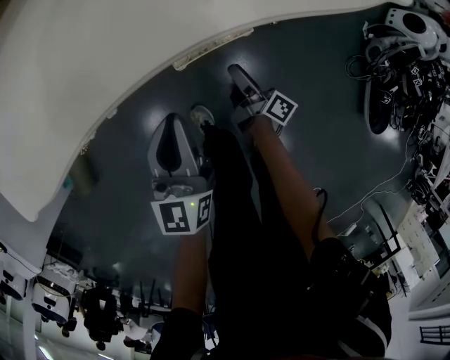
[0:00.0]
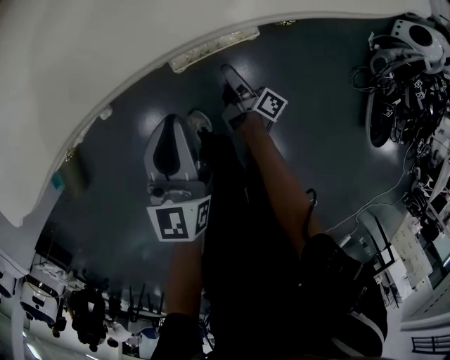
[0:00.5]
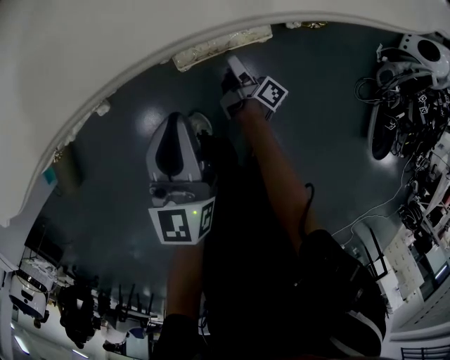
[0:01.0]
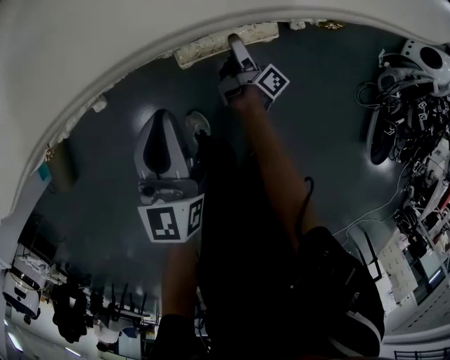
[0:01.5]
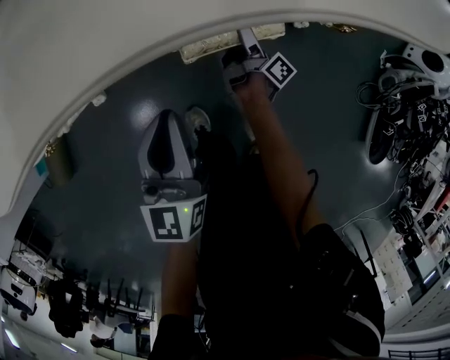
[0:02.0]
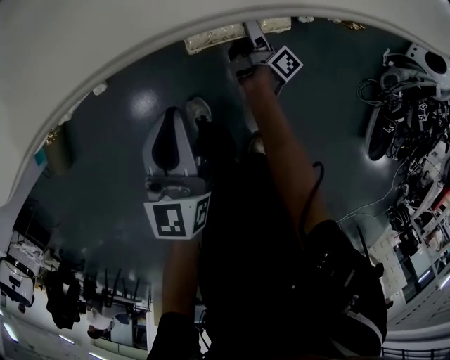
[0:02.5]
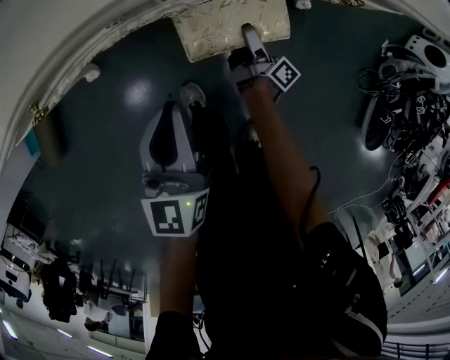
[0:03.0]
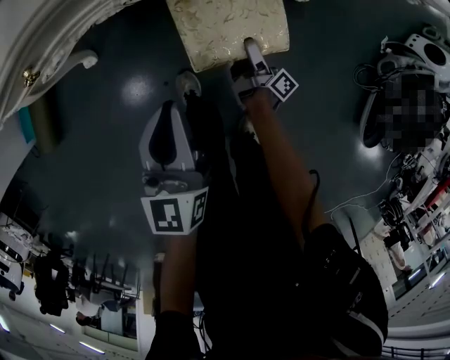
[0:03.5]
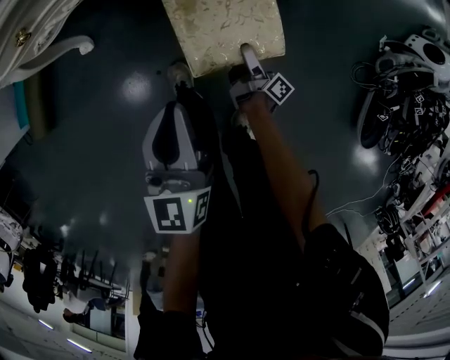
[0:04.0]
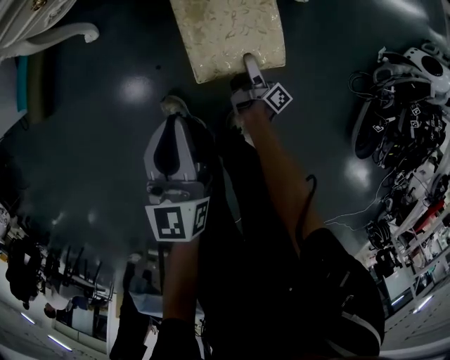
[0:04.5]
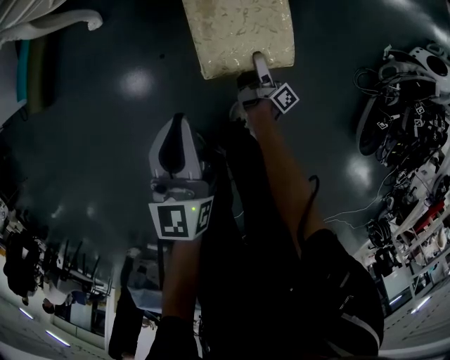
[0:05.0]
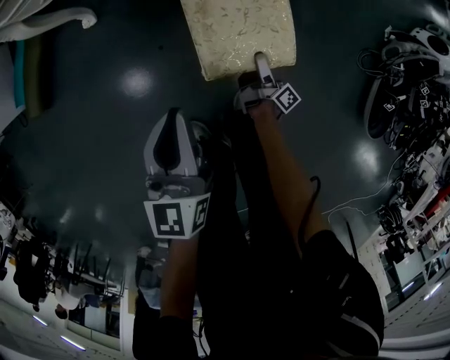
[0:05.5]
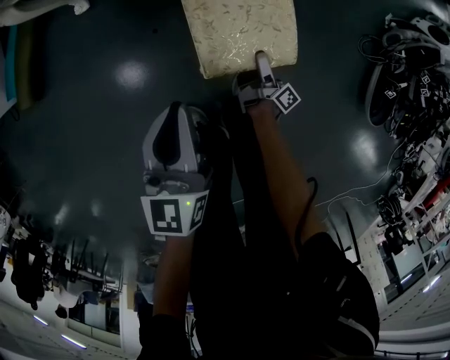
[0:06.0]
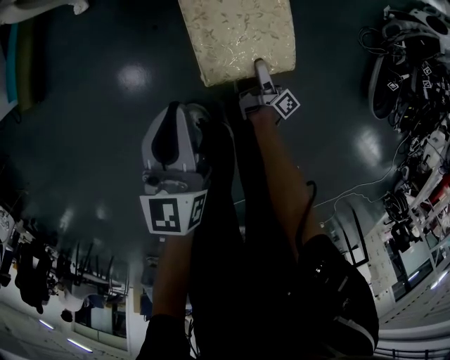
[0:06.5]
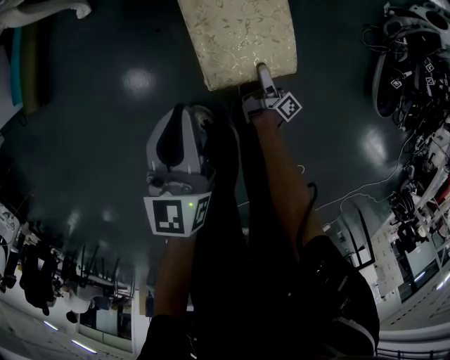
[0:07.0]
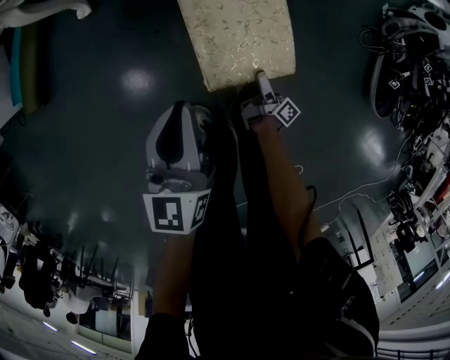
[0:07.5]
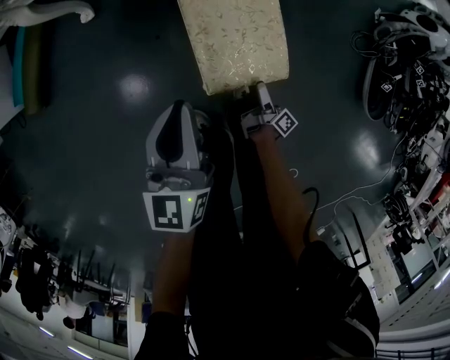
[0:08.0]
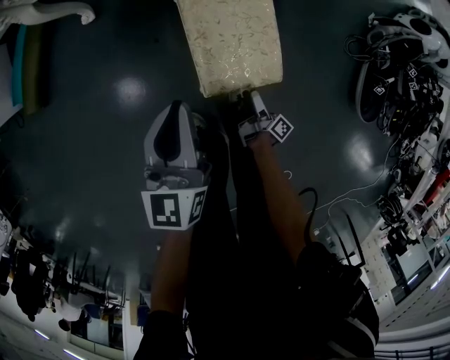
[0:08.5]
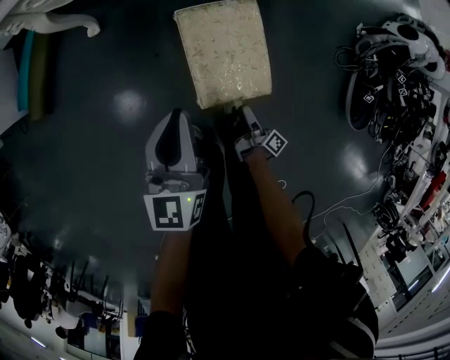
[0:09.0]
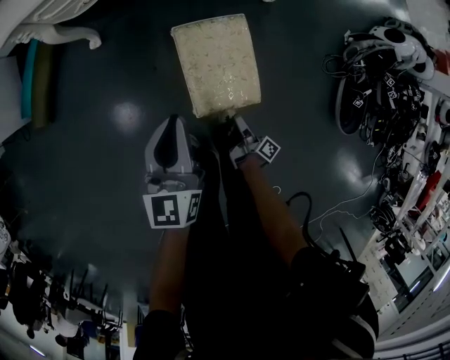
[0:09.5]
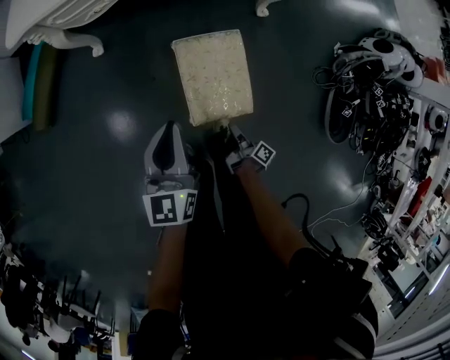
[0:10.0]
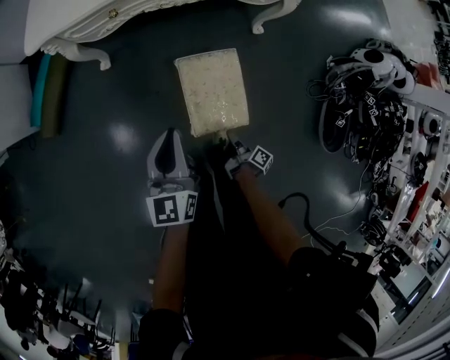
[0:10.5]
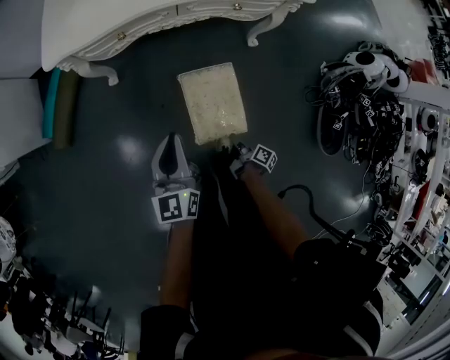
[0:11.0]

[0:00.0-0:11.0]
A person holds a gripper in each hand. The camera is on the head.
0:00.0 to 0:02.0: The right gripper shifts some 15 cm downward and forward, and opens its fingers; the left gripper shifts roughly 10 cm downward.
0:02.0 to 0:03.5: The left gripper is displaced backward by about 10 cm, while the right gripper goes some 15 cm backward.
0:03.5 to 0:05.5: The two grippers go approximately 20 cm backward.
0:05.5 to 0:07.5: The left gripper goes roughly 10 cm backward. Meanwhile the right gripper moves backward, roughly 15 cm.
0:07.5 to 0:09.0: The right gripper is displaced upward and backward by approximately 10 cm, and closes its fingers. Meanwhile the left gripper goes about 10 cm upward.
0:09.0 to 0:11.0: The right gripper moves upward and forward, some 15 cm, and closes. The left gripper heads upward, covering about 15 cm.

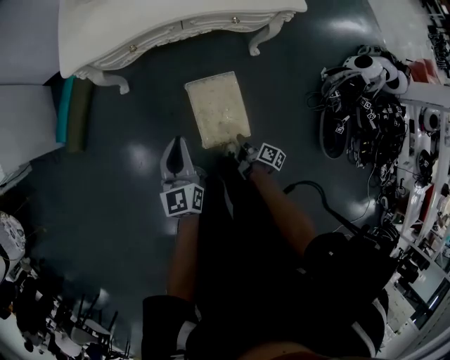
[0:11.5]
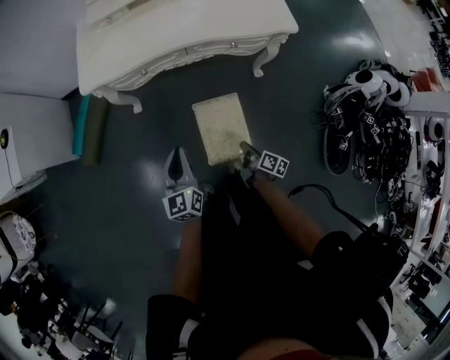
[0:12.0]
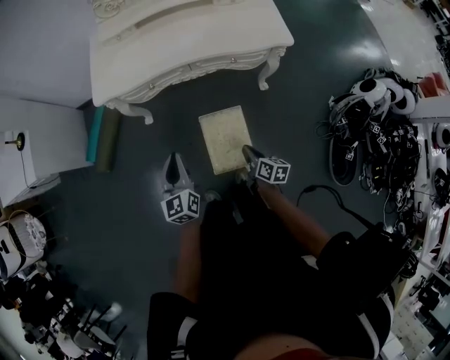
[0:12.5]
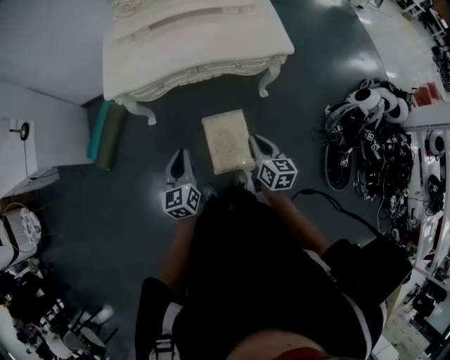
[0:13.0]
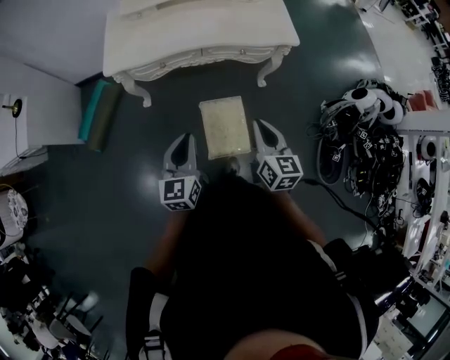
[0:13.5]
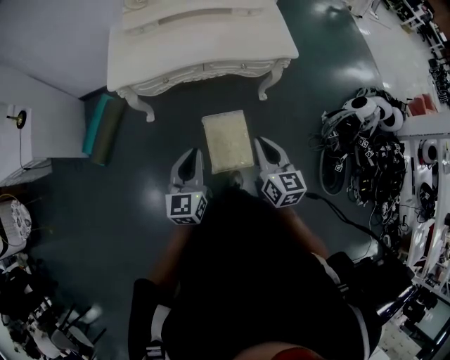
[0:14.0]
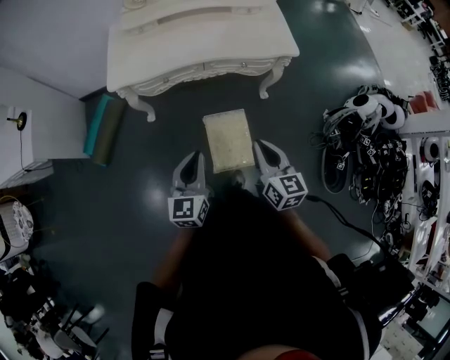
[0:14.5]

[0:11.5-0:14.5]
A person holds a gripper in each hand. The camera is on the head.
0:11.5 to 0:13.0: The left gripper shifts approximately 10 cm upward. Meanwhile the right gripper is displaced upward by about 30 cm, and twists roughly 50 degrees counterclockwise, seen from behind.
0:13.0 to 0:14.5: The left gripper moves some 5 cm. The right gripper heads upward, covering some 10 cm.

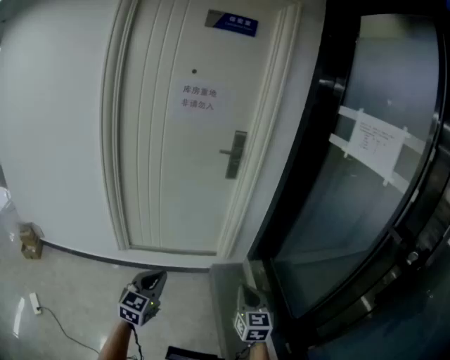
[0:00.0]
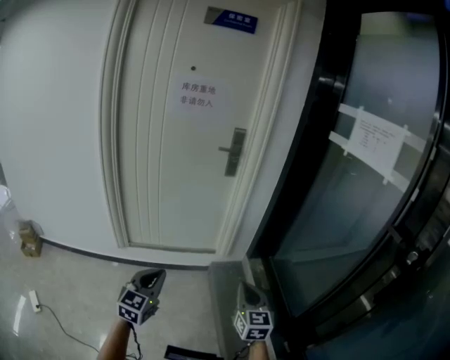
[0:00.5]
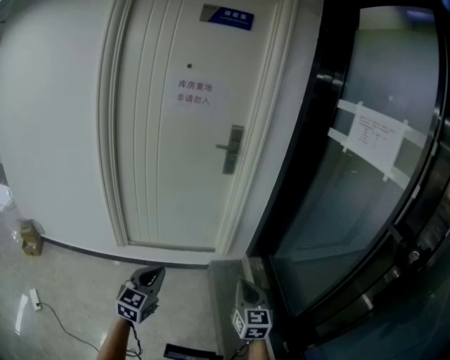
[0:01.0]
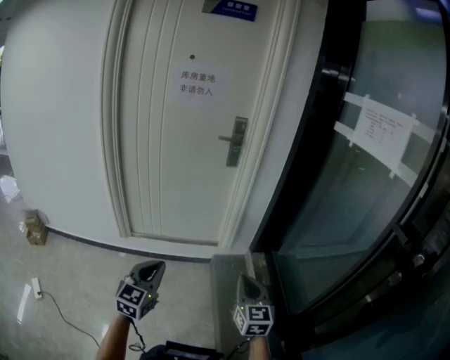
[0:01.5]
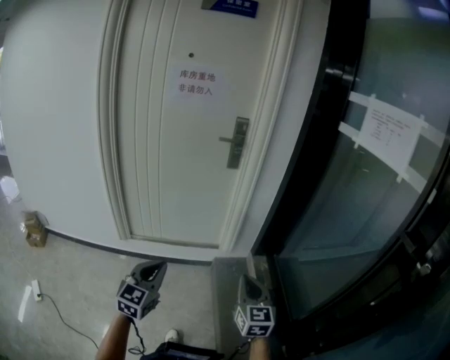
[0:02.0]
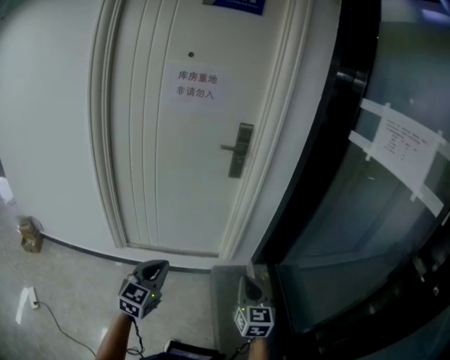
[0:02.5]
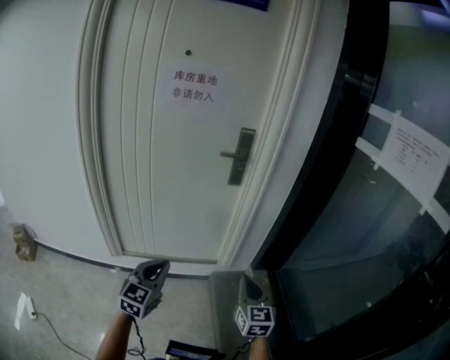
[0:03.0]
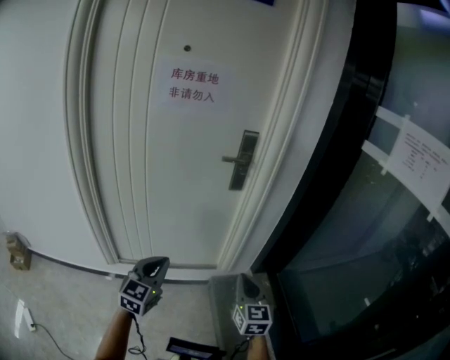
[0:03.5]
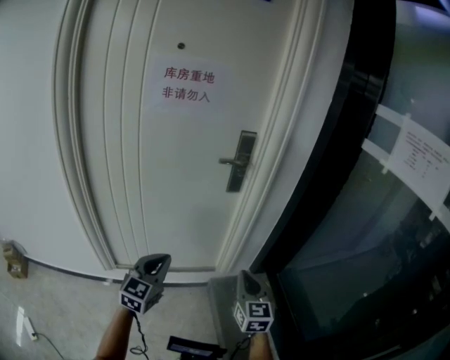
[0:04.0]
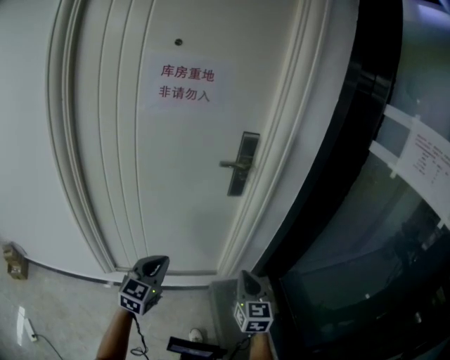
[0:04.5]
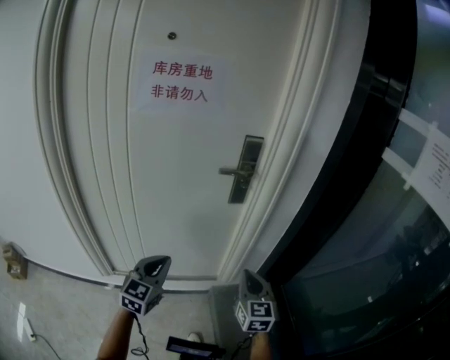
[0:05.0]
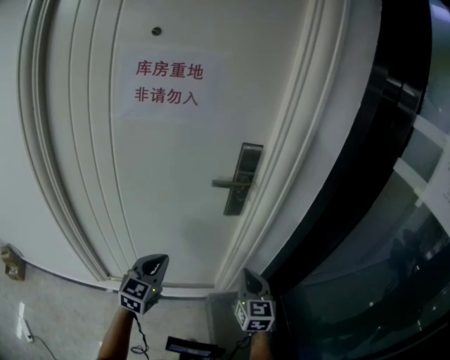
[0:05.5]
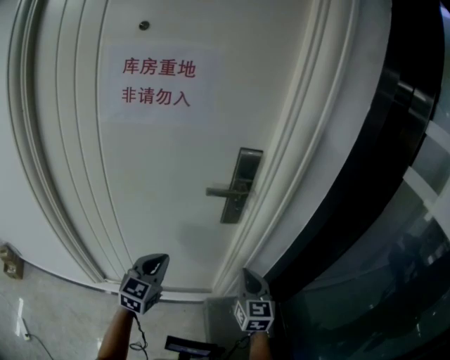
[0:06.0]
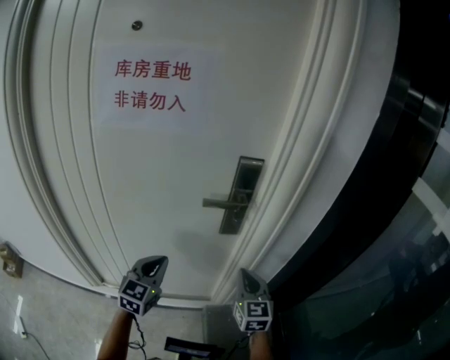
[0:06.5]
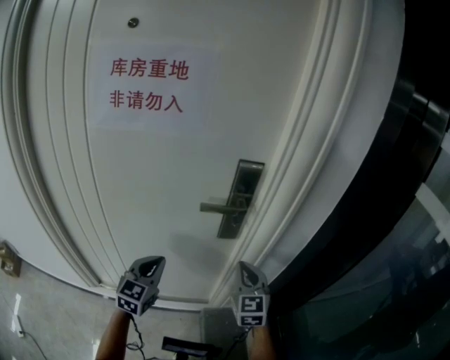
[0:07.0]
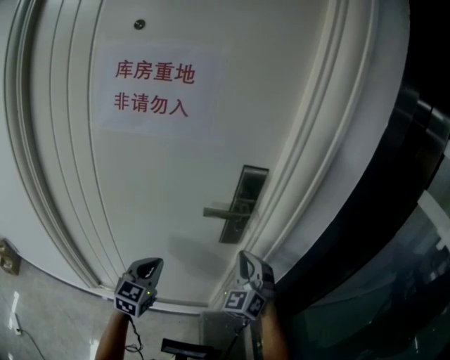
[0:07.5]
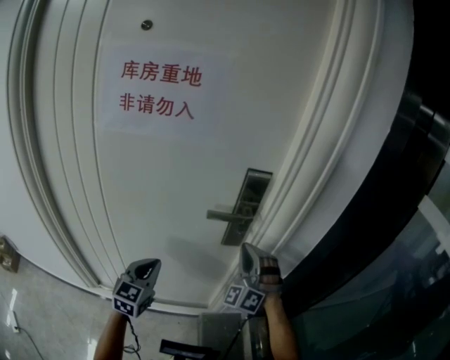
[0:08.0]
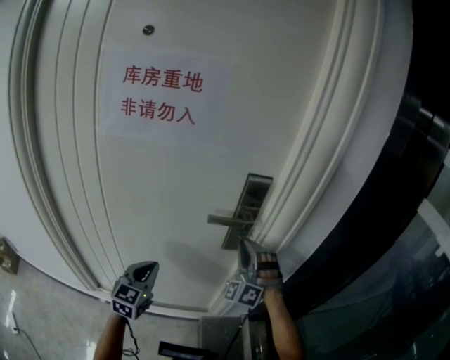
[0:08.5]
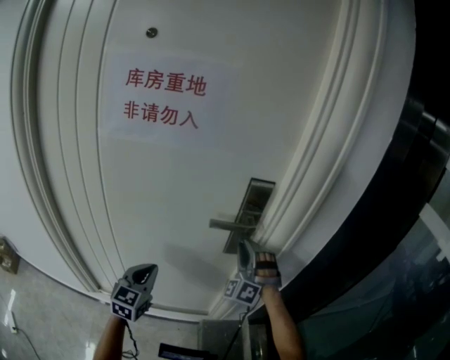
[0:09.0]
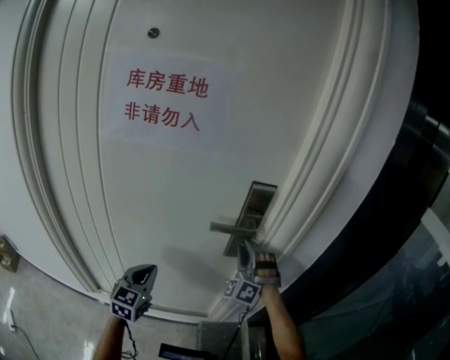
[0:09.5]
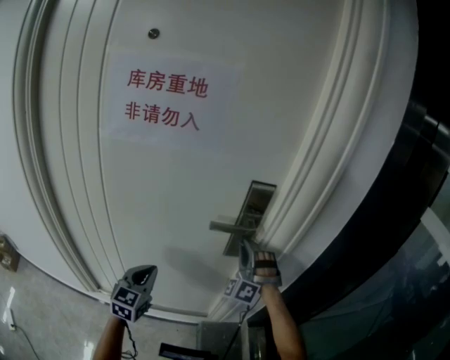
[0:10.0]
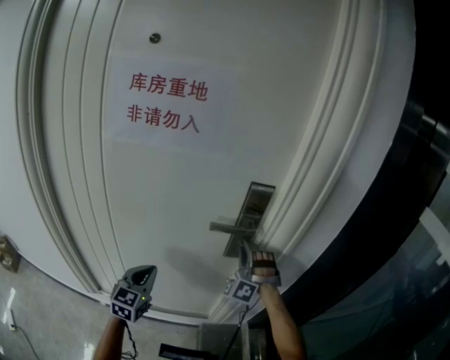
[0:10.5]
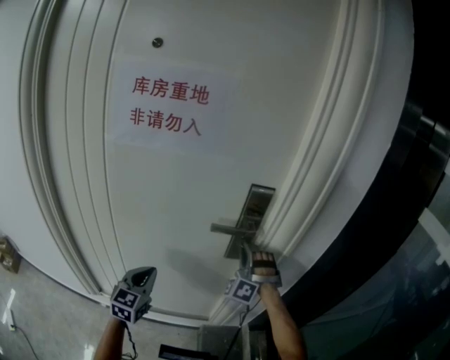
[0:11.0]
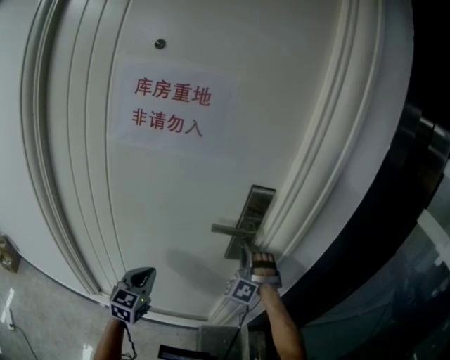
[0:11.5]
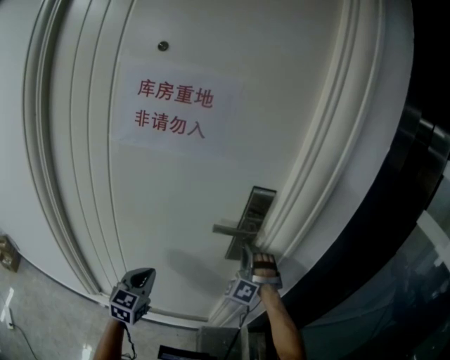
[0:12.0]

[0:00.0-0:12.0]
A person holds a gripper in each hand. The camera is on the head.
0:00.0 to 0:02.0: The left gripper travels to the right by about 5 cm. Meanwhile the right gripper goes roughly 10 cm forward and to the right.
0:02.0 to 0:04.0: The two grippers go some 25 cm forward.
0:04.0 to 0:06.0: The two grippers go some 25 cm forward.
0:06.0 to 0:08.0: The left gripper is displaced forward by about 5 cm; the right gripper shifts approximately 15 cm forward and upward, and rotates around the line of its fingers by about 70 degrees, counterclockwise from behind.
0:08.0 to 0:10.0: The right gripper travels forward by roughly 5 cm.
0:10.0 to 0:12.0: The grippers stay close to where they were, moving slightly.

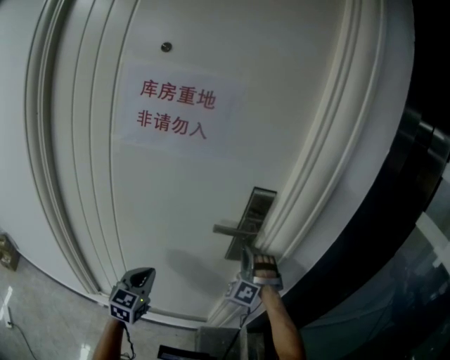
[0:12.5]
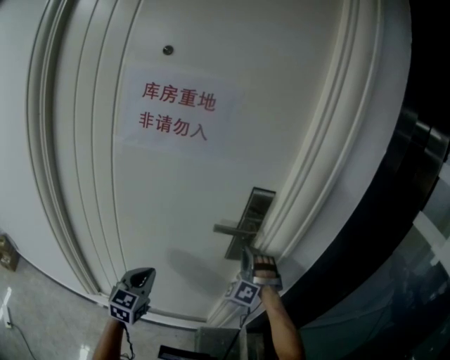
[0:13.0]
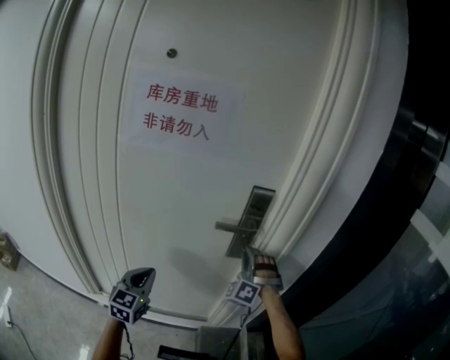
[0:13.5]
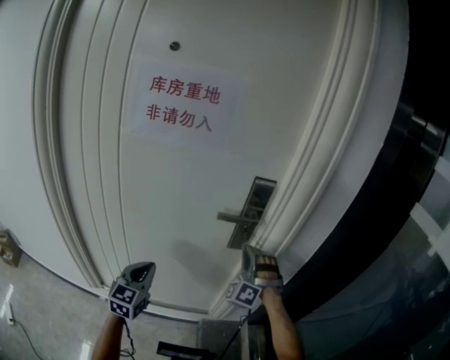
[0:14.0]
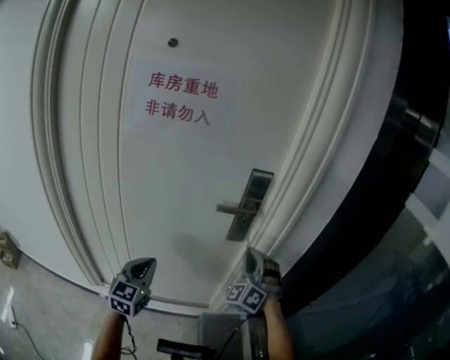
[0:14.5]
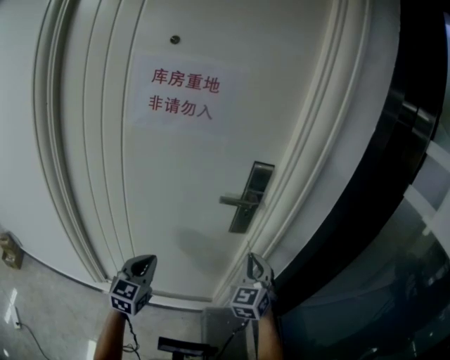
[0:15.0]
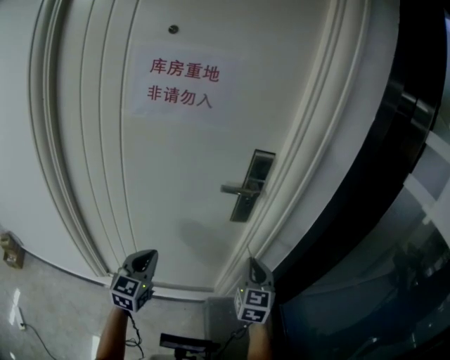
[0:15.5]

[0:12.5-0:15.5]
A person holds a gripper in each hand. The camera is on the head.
0:12.5 to 0:14.0: The right gripper heads backward, covering approximately 5 cm.
0:14.0 to 0:15.5: The right gripper shifts some 15 cm backward, and rolls clockwise, seen from behind, by roughly 80 degrees.